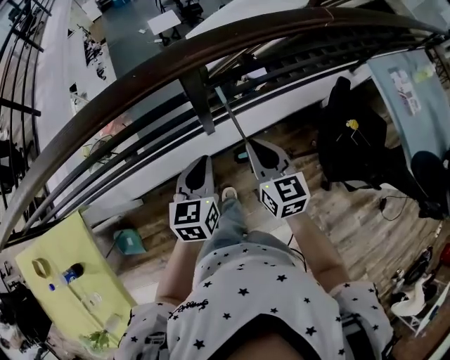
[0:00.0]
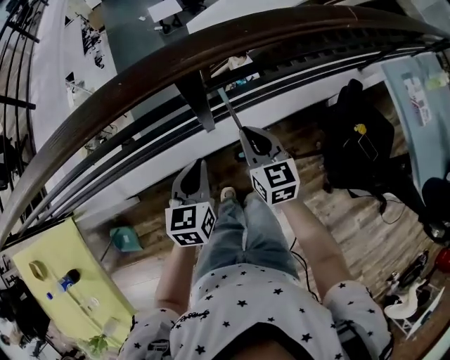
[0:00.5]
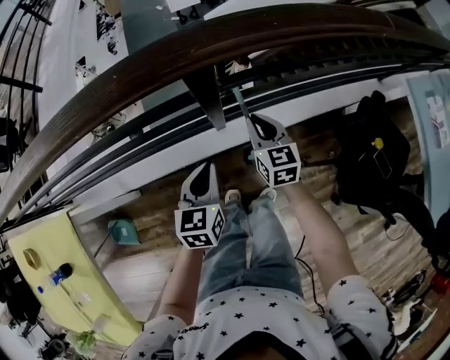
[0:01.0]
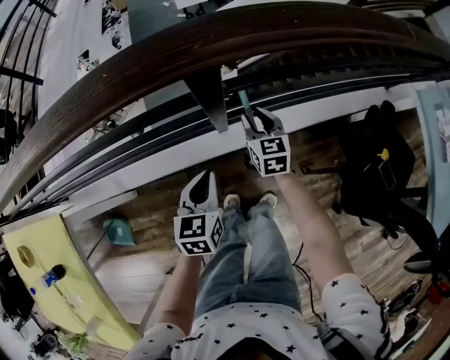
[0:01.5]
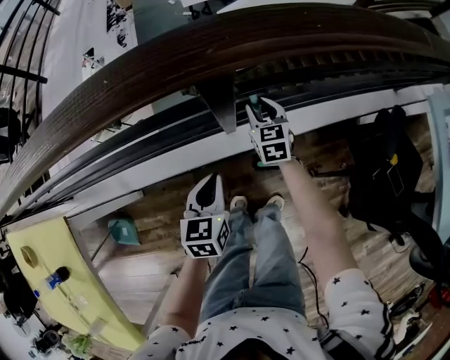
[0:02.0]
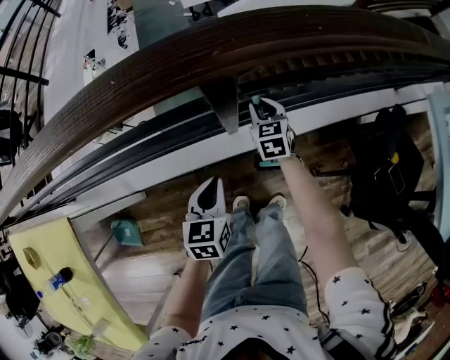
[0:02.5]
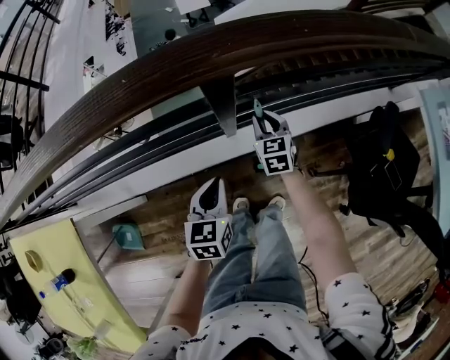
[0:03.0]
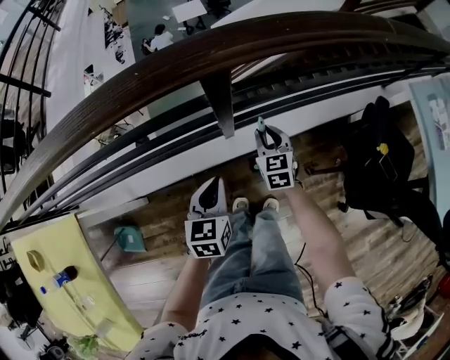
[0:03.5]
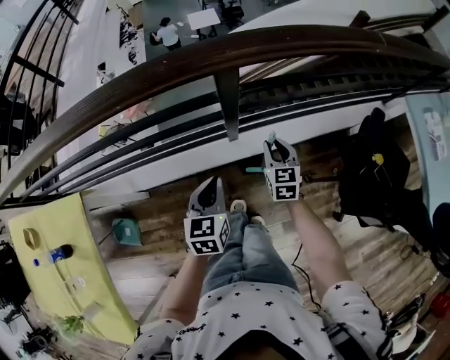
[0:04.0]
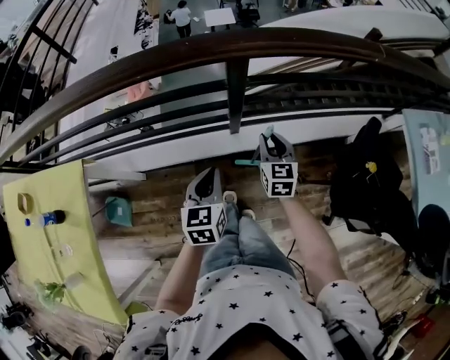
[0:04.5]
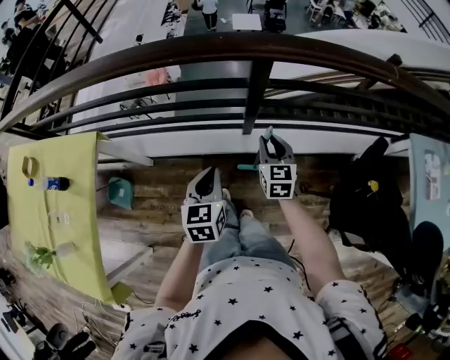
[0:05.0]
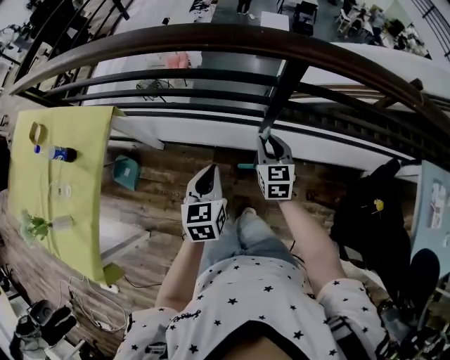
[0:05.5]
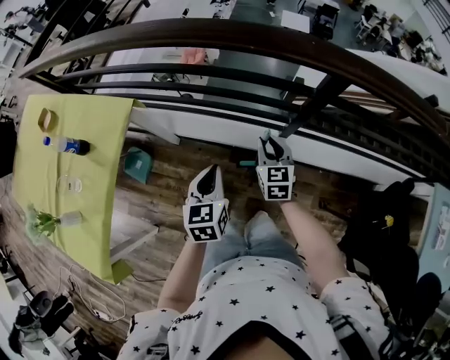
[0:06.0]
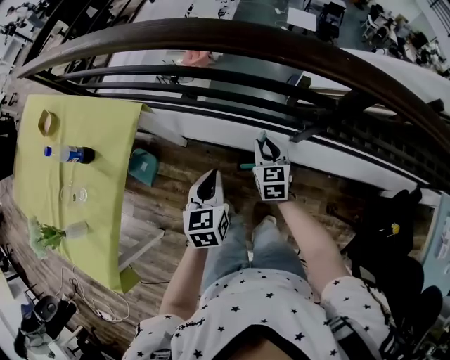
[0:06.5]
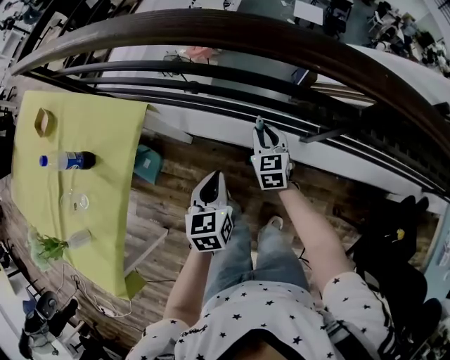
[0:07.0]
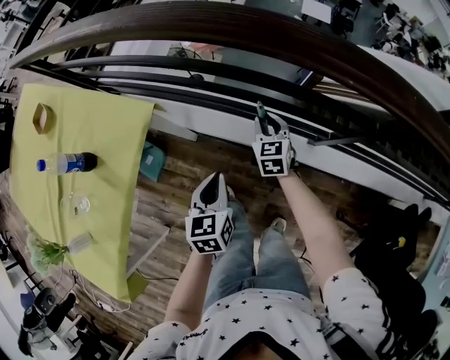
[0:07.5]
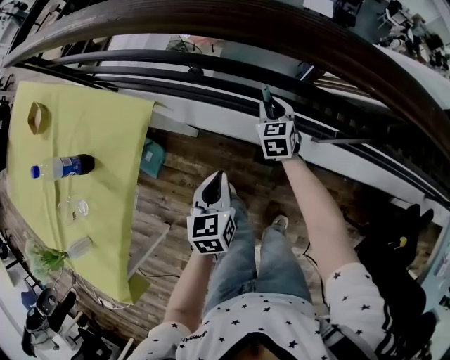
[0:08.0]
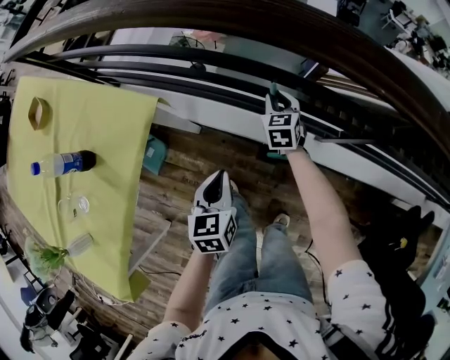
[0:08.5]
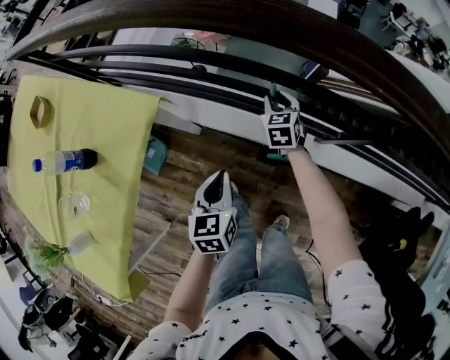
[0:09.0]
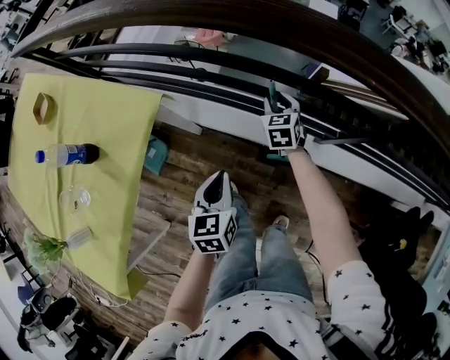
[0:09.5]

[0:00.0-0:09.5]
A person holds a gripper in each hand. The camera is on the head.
0:00.0 to 0:02.0: The left gripper heads downward, covering approximately 20 cm, while the right gripper goes about 35 cm downward and forward, and opens.
0:02.0 to 0:04.0: The left gripper goes approximately 15 cm upward and backward, while the right gripper shifts some 20 cm backward and upward.
0:04.0 to 0:05.5: The left gripper moves to the left and backward, some 15 cm, and swivels some 20 degrees. The right gripper goes roughly 20 cm to the left and upward, and turns by approximately 20 degrees.
0:05.5 to 0:07.5: The grippers both shift to the left, forward and downward by about 35 cm.
0:07.5 to 0:09.5: The right gripper shifts approximately 5 cm forward.

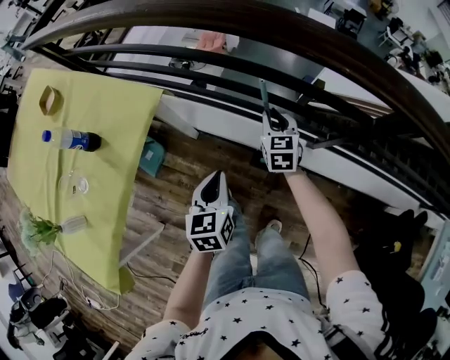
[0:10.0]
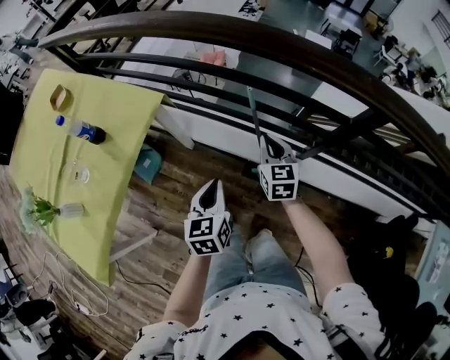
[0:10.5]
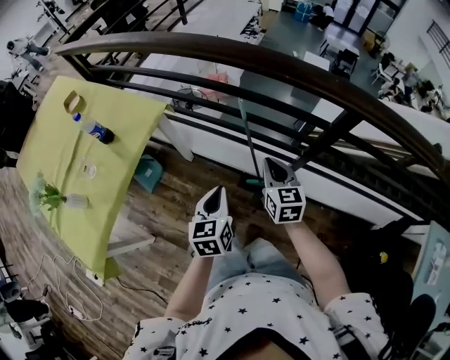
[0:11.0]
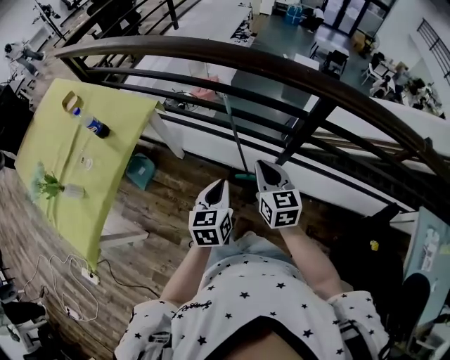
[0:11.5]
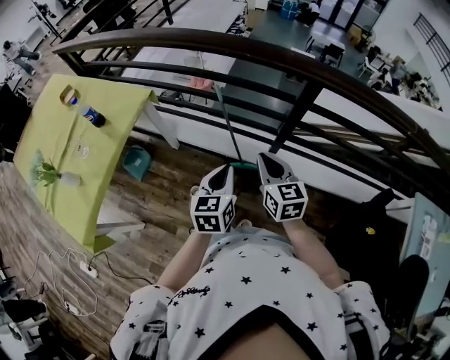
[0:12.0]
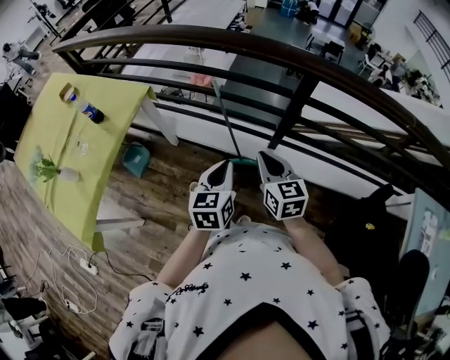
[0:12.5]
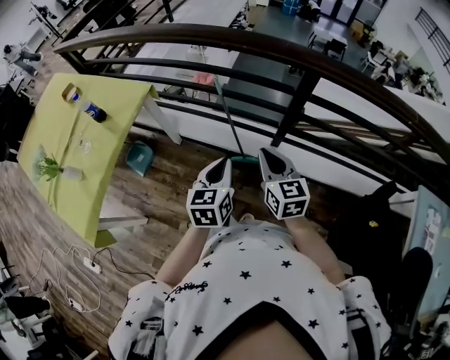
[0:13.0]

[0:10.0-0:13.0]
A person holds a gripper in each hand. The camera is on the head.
0:10.0 to 0:11.5: The right gripper shifts some 35 cm backward and upward. Meanwhile the left gripper is displaced backward, to the right and upward by roughly 25 cm.
0:11.5 to 0:13.0: The left gripper heads to the right, covering some 5 cm, while the right gripper moves backward, approximately 5 cm.

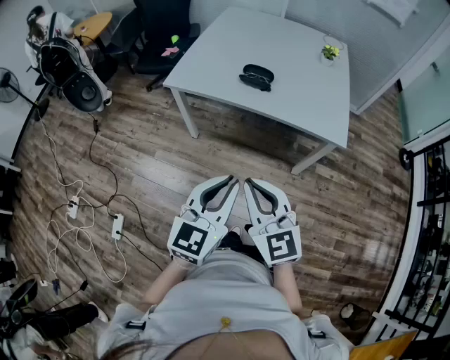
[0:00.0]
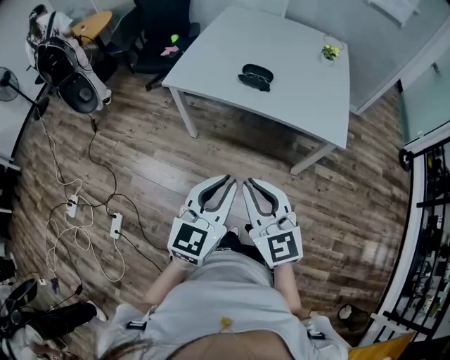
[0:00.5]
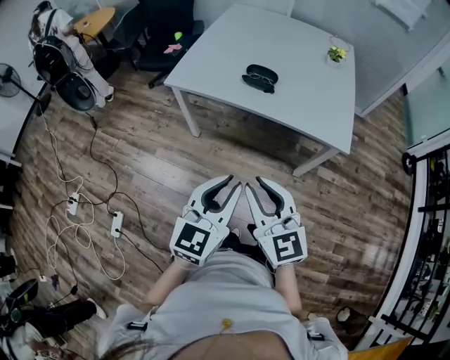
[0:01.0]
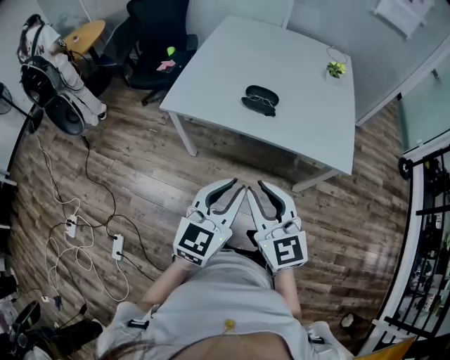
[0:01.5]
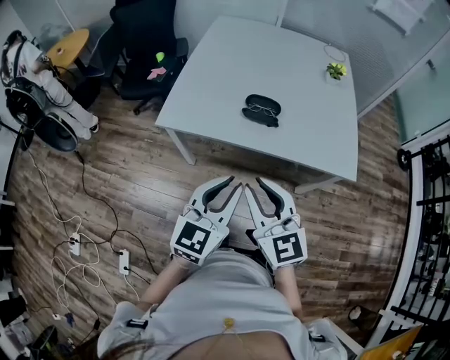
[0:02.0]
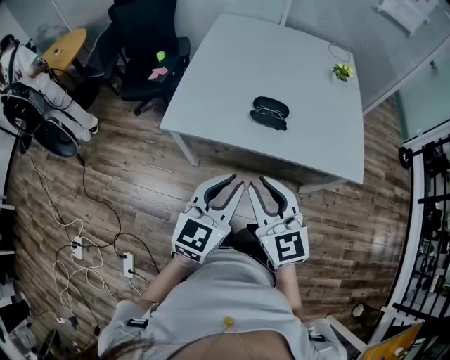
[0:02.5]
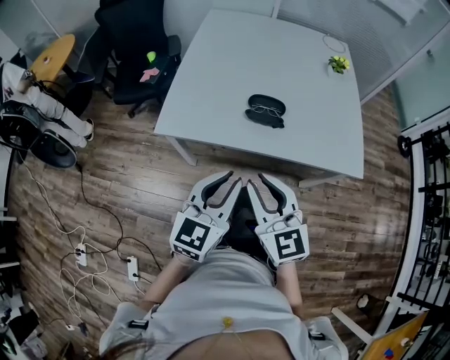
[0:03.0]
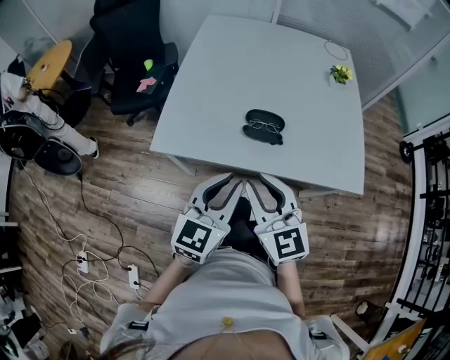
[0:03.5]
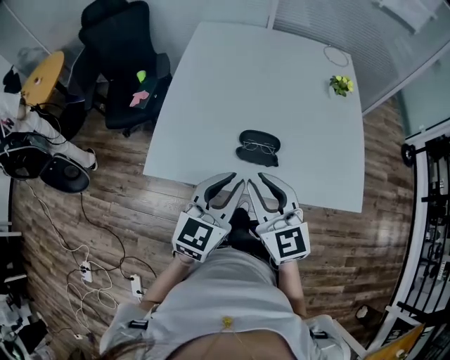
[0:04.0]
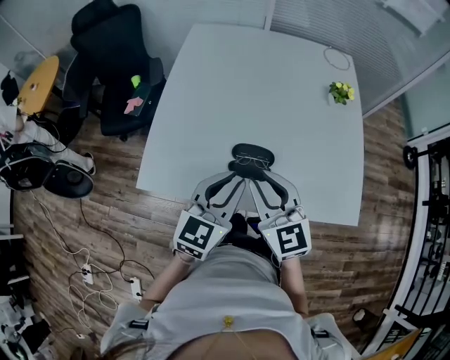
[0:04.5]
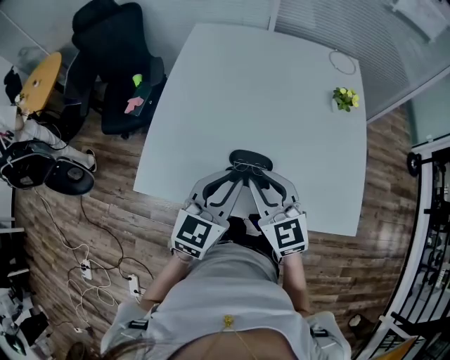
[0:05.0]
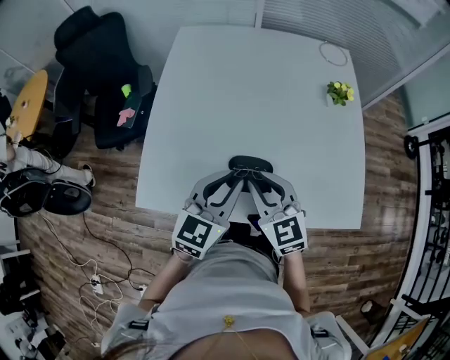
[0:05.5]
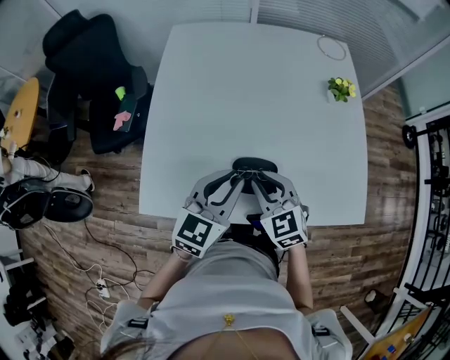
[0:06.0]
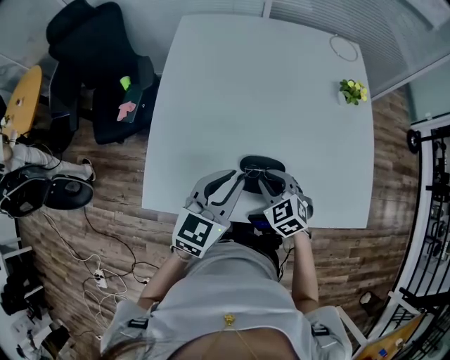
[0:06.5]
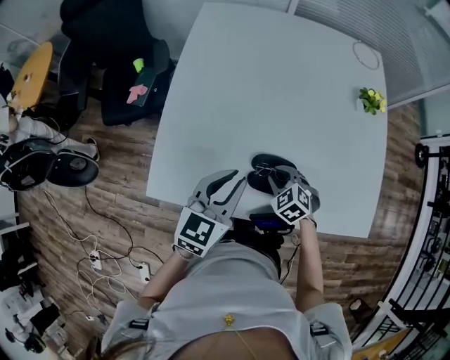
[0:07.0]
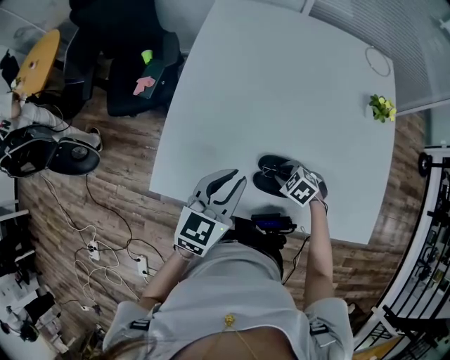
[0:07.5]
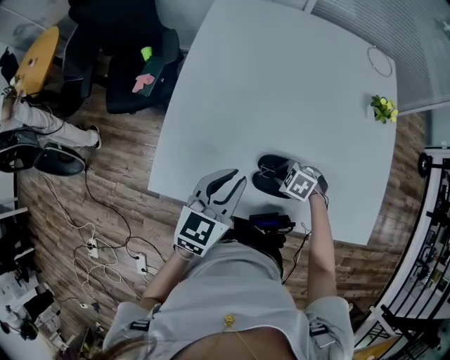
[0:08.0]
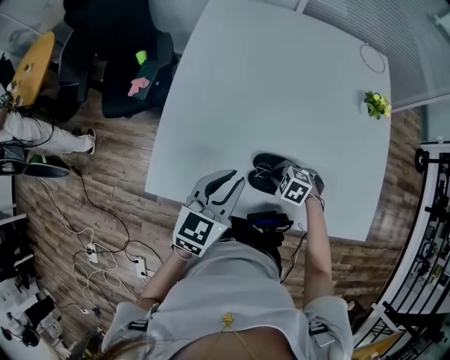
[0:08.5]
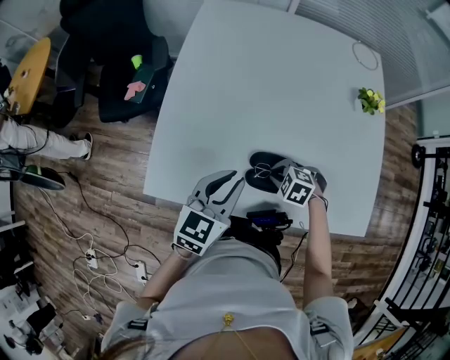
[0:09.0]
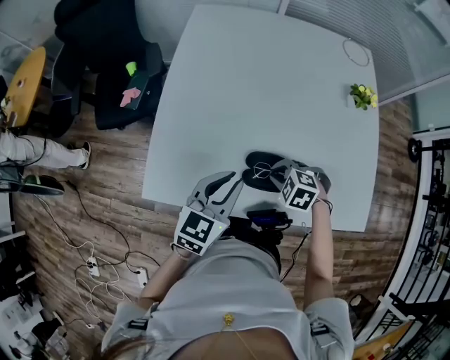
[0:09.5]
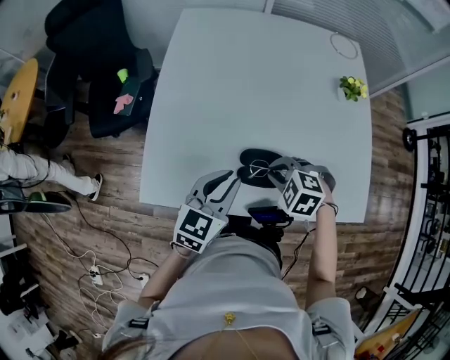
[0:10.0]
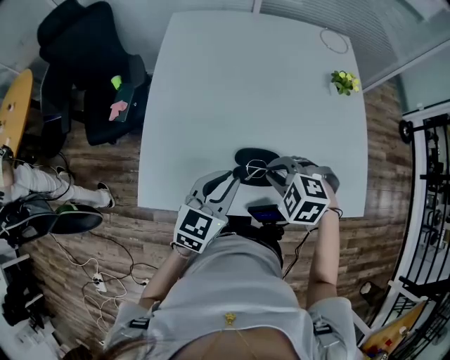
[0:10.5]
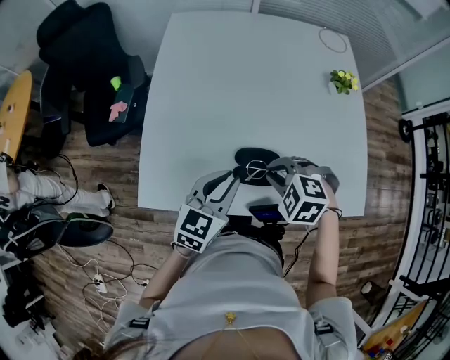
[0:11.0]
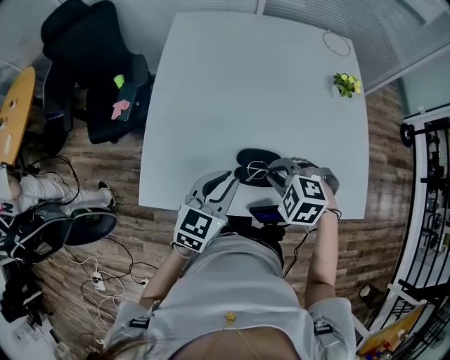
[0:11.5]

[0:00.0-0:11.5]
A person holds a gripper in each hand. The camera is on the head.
0:00.0 to 0:02.0: Both grippers travel together forward, roughly 20 cm.
0:02.0 to 0:04.0: The grippers both shift forward by approximately 20 cm.
0:04.0 to 0:06.0: The left gripper travels forward by about 15 cm; the right gripper heads forward and downward, covering some 20 cm, and swivels approximately 20 degrees.
0:06.0 to 0:07.5: The right gripper is displaced downward by some 20 cm, and points its fingers about 30 degrees further downward. The left gripper ends up some 10 cm from where it was.
0:07.5 to 0:09.5: The right gripper shifts roughly 5 cm upward.
0:09.5 to 0:11.5: The right gripper travels upward by approximately 10 cm.

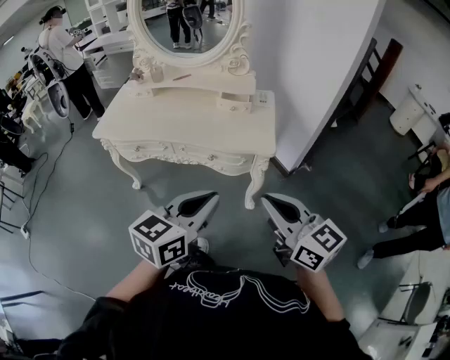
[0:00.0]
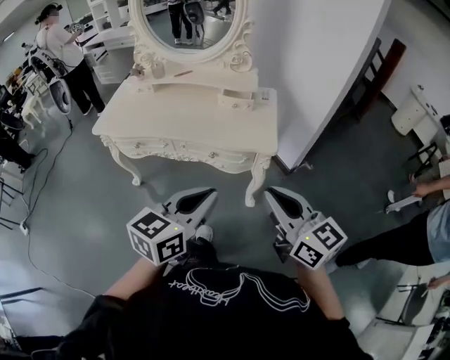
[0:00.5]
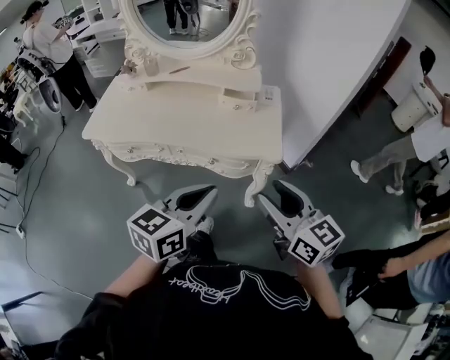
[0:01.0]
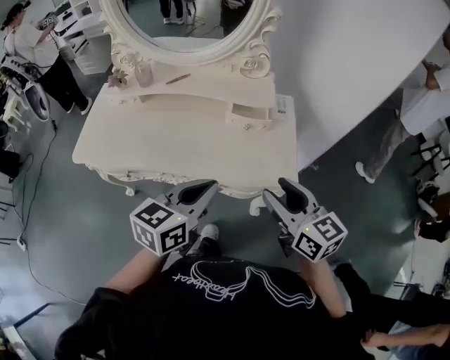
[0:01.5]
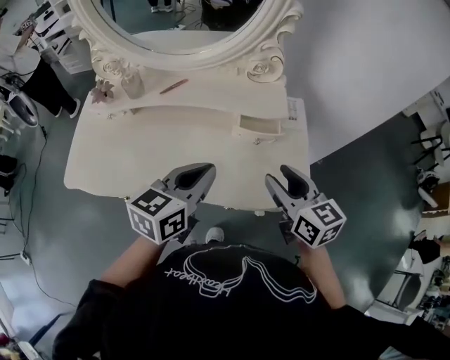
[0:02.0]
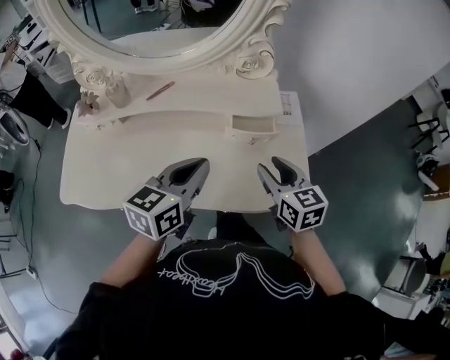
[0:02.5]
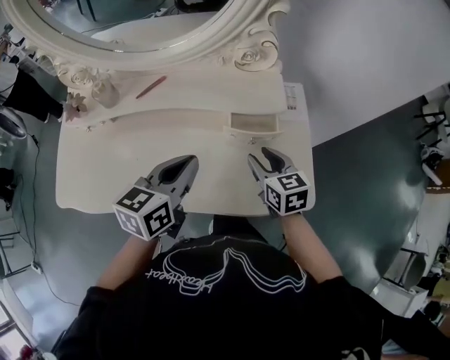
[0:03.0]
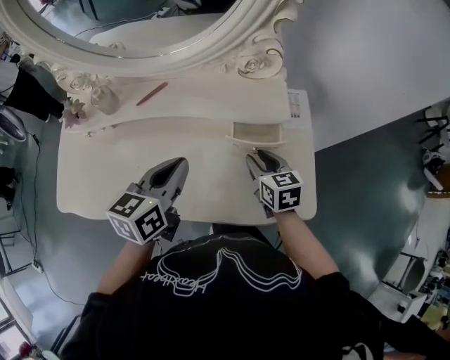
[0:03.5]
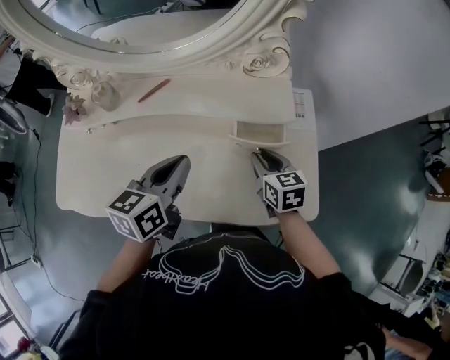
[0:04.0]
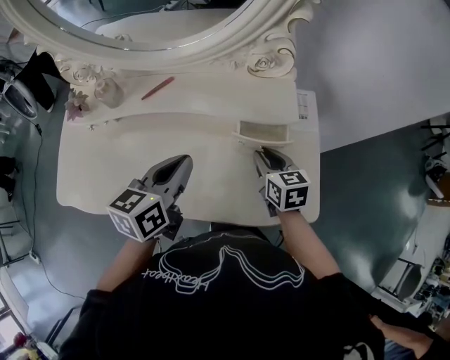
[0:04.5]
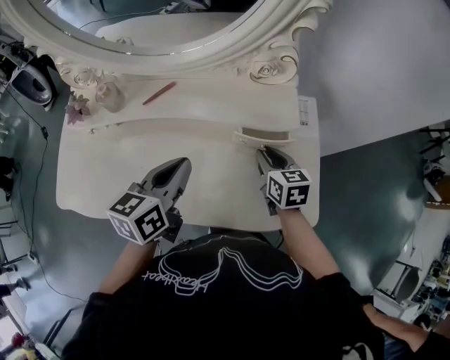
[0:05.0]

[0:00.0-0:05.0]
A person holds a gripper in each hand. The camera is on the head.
0:00.0 to 0:02.5: The two grippers travel together, forward, approximately 40 cm. The right gripper changes its angle by roughly 30 degrees, and opens up.
0:02.5 to 0:05.0: The left gripper heads forward and to the left, covering approximately 10 cm. Meanwhile the right gripper shifts approximately 15 cm forward and downward.
